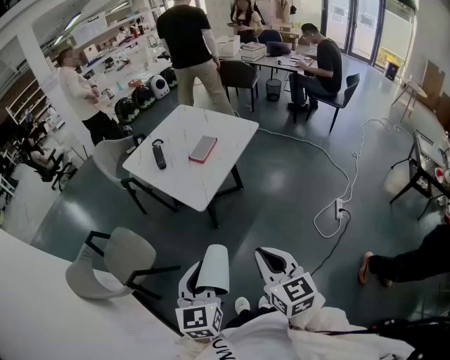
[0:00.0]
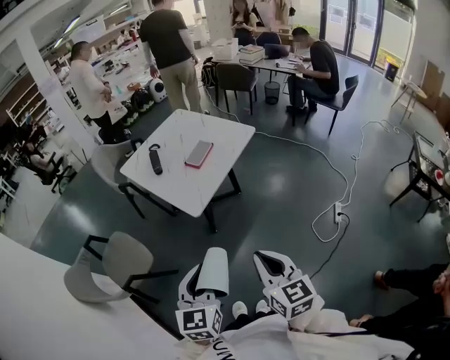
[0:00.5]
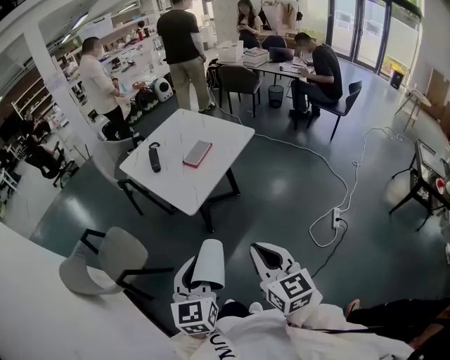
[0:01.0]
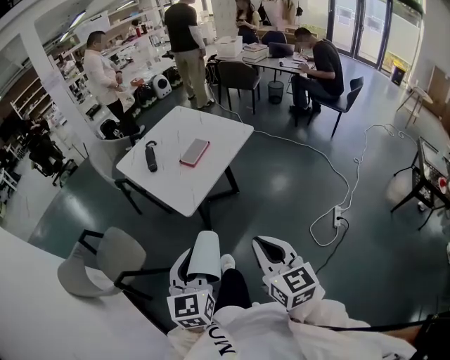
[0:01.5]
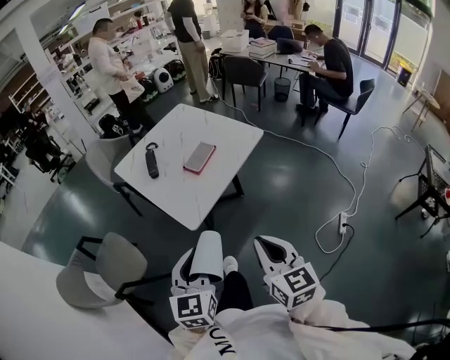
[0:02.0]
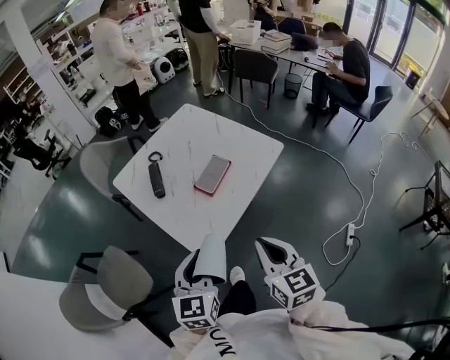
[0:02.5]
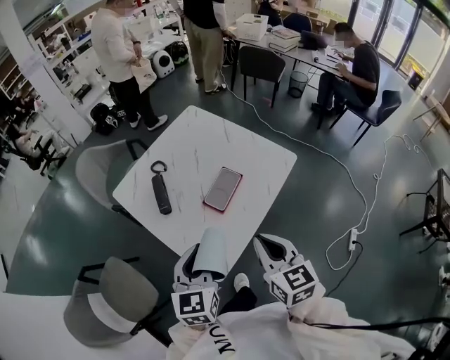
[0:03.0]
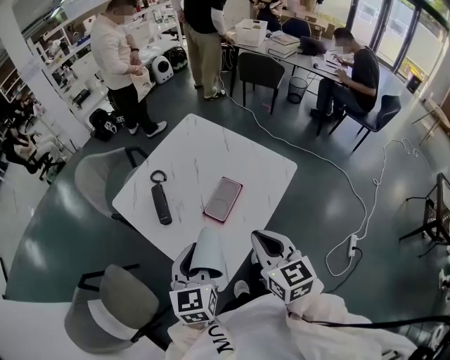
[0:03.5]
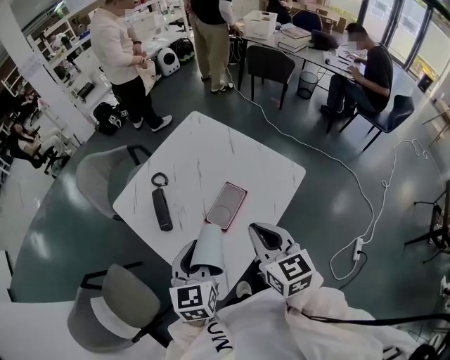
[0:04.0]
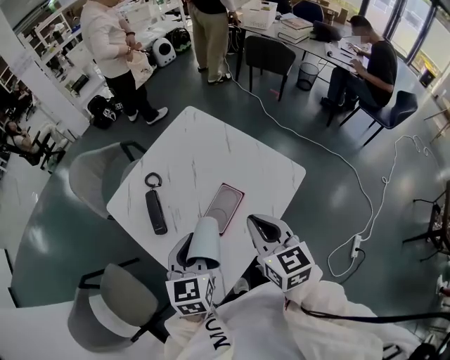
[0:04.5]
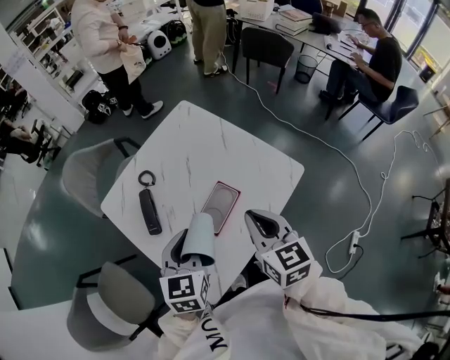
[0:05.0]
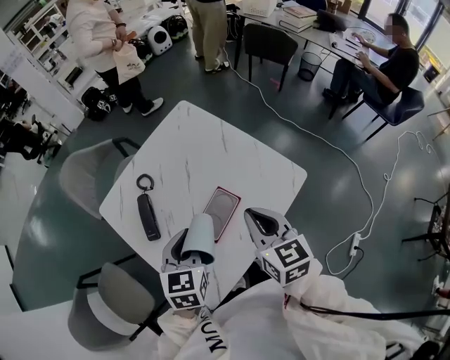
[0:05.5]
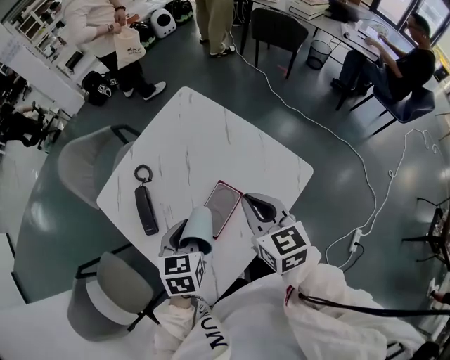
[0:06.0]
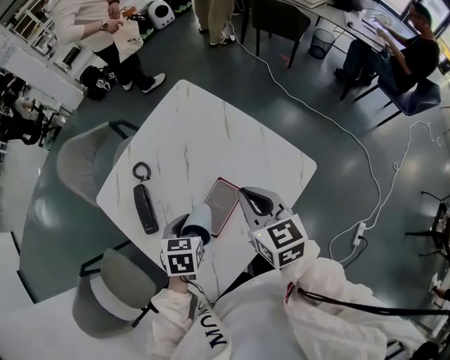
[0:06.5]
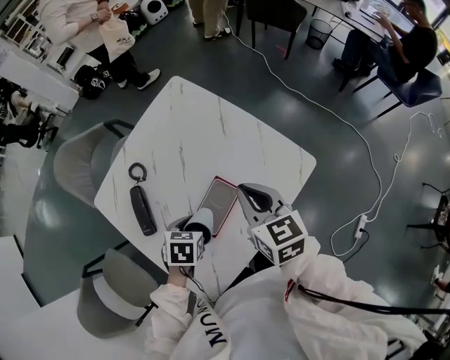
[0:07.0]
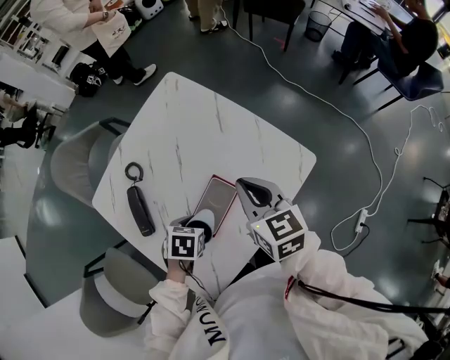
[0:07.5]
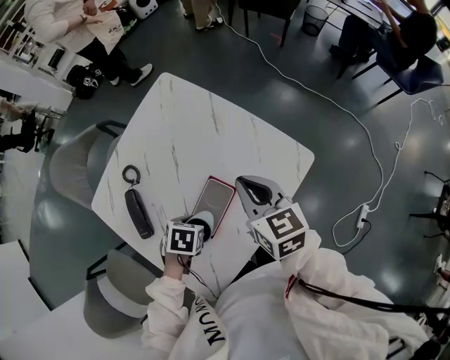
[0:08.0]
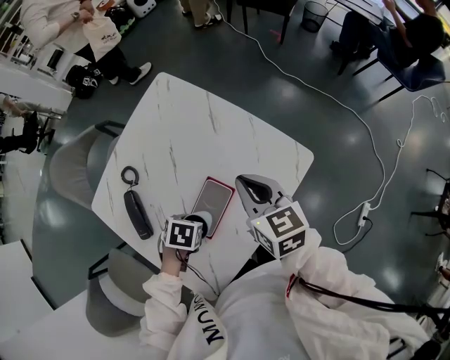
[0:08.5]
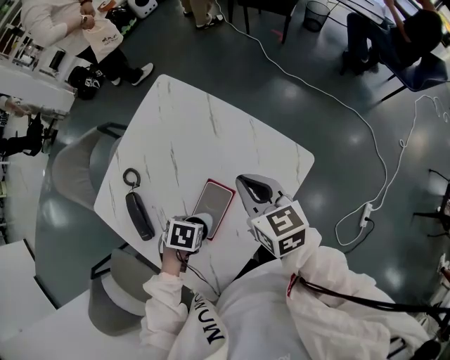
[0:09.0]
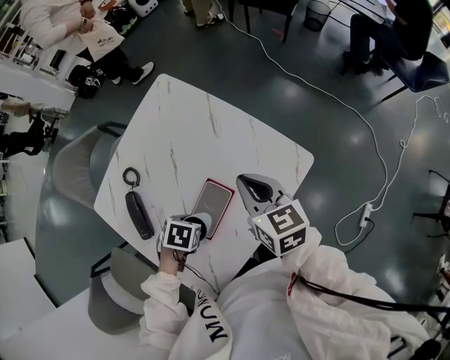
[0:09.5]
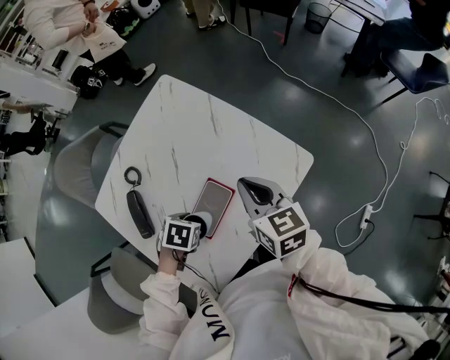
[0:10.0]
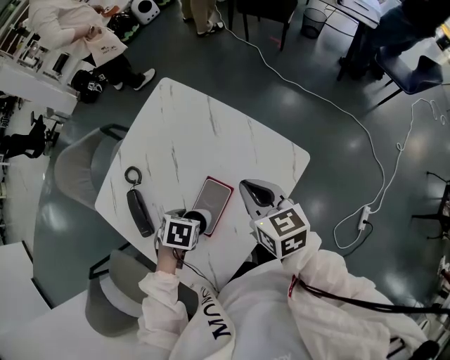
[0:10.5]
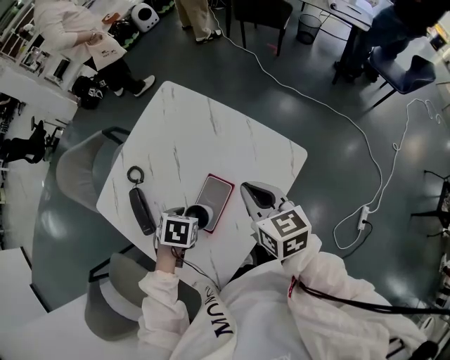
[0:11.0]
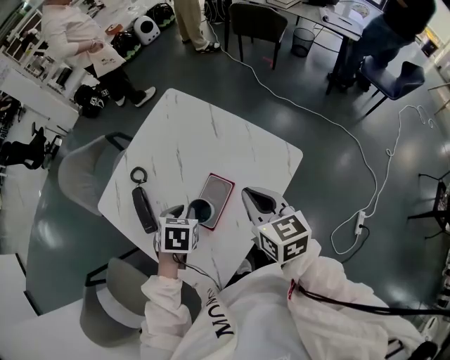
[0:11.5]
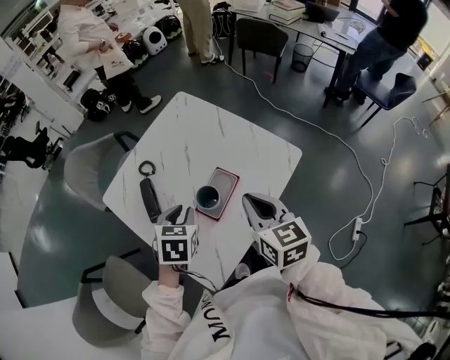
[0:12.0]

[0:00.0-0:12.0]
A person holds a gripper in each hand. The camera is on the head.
0:00.0 to 0:02.0: The two grippers go about 15 cm forward and to the right.
0:02.0 to 0:04.0: Both grippers travel together forward, about 40 cm.
0:04.0 to 0:06.0: The right gripper goes roughly 15 cm forward. The left gripper shifts about 15 cm forward and downward, and turns by about 20 degrees.
0:06.0 to 0:08.0: The right gripper moves some 10 cm. Meanwhile the left gripper travels downward by roughly 15 cm, and angles its fingers downward, by approximately 40 degrees.
0:08.0 to 0:10.0: The grippers make only small movements.
0:10.0 to 0:12.0: The left gripper heads upward, covering roughly 15 cm, and rotates roughly 30 degrees; the right gripper changes place by roughly 15 cm.

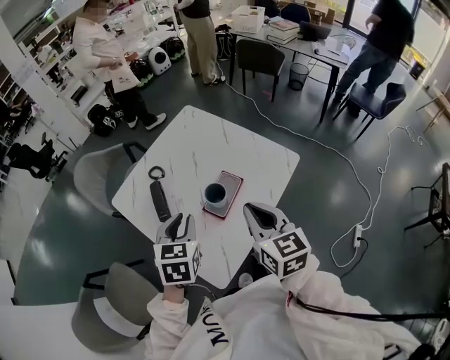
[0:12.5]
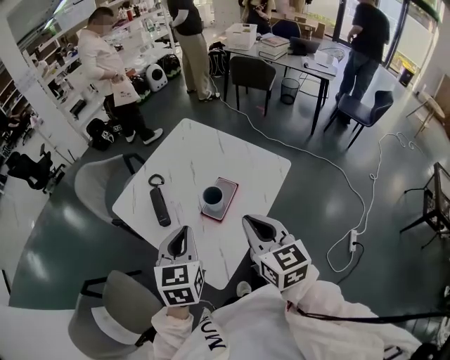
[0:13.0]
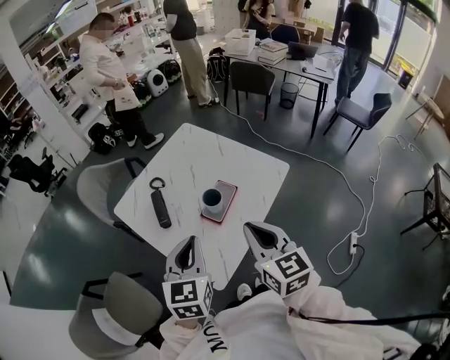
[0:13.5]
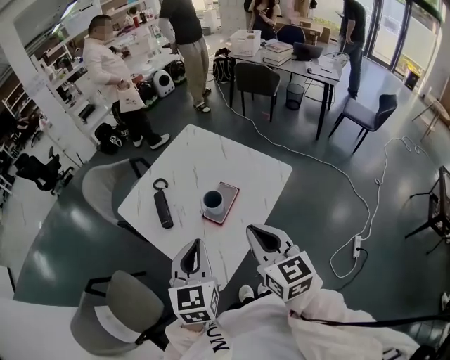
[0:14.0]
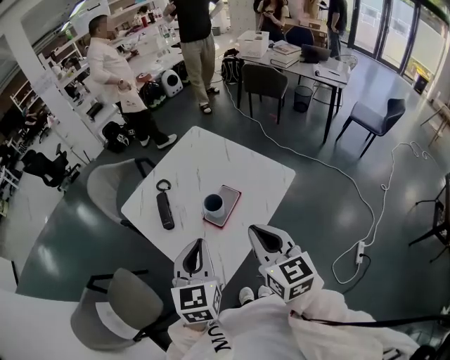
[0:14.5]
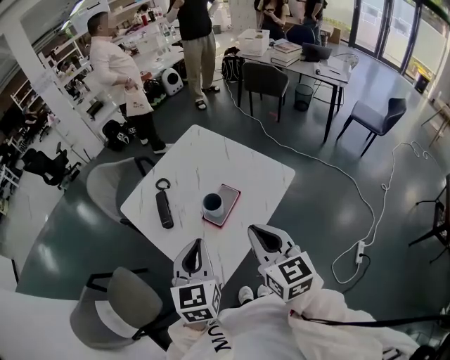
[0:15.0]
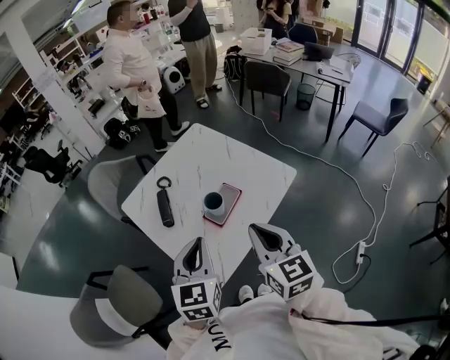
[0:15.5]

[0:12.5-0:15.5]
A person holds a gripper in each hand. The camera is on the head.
0:12.5 to 0:14.0: Both grippers move backward and upward, approximately 10 cm.
0:14.0 to 0:15.5: The grippers make only small movements.

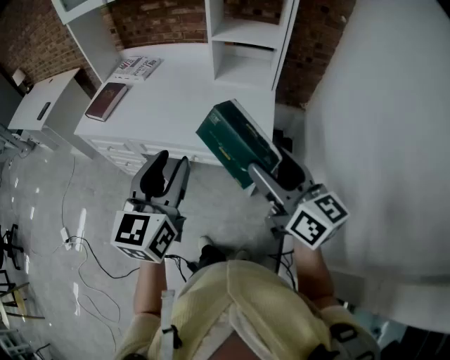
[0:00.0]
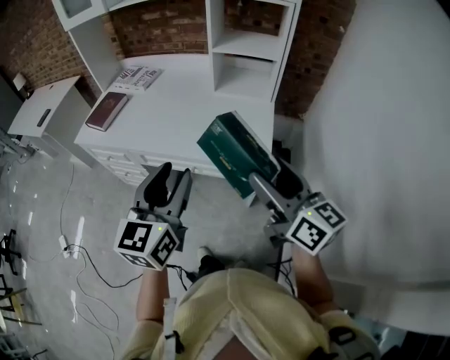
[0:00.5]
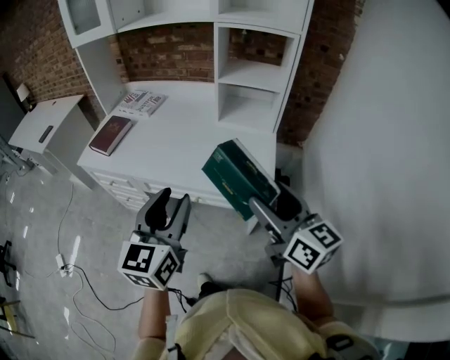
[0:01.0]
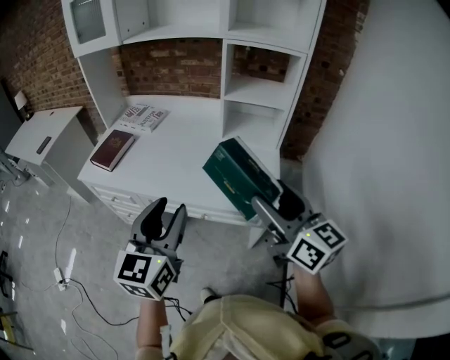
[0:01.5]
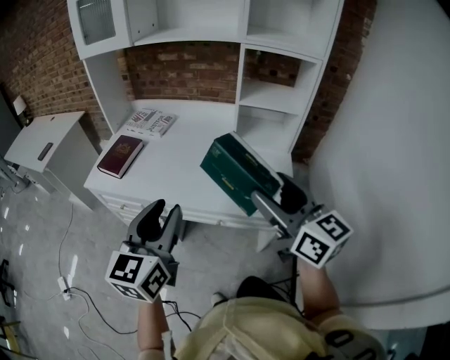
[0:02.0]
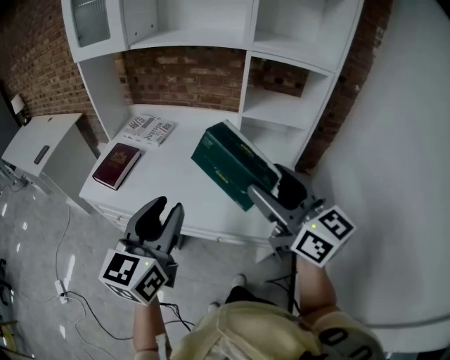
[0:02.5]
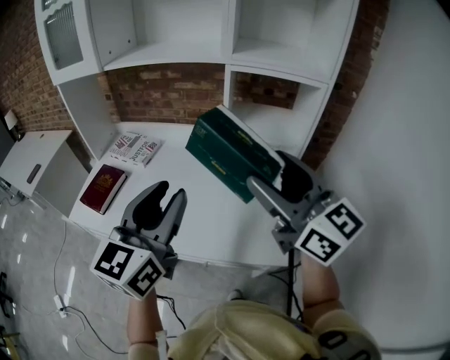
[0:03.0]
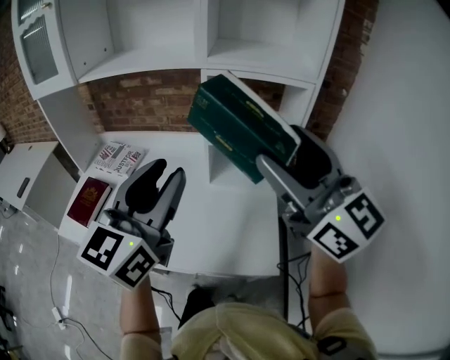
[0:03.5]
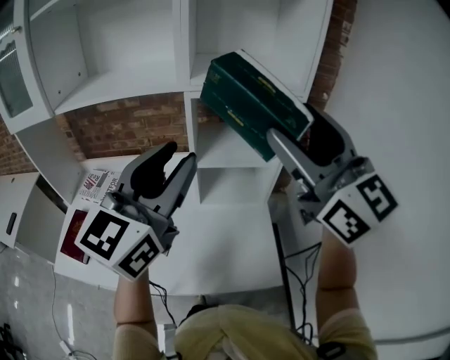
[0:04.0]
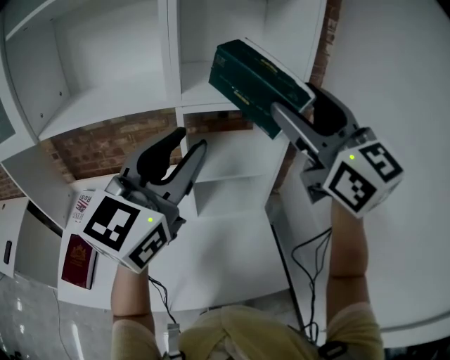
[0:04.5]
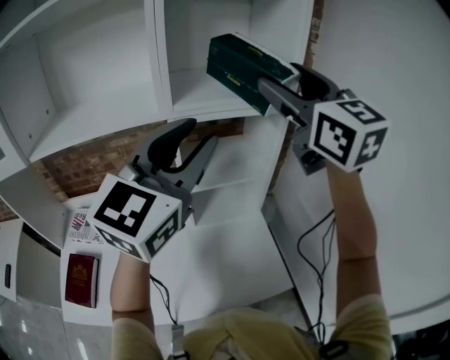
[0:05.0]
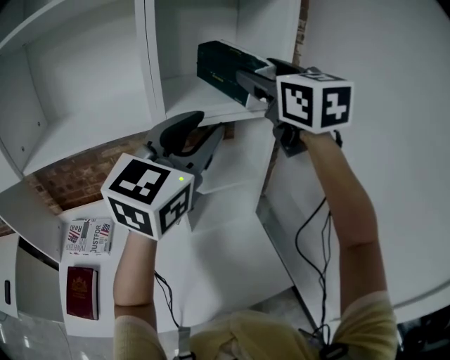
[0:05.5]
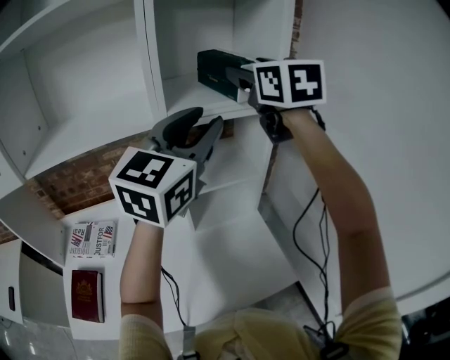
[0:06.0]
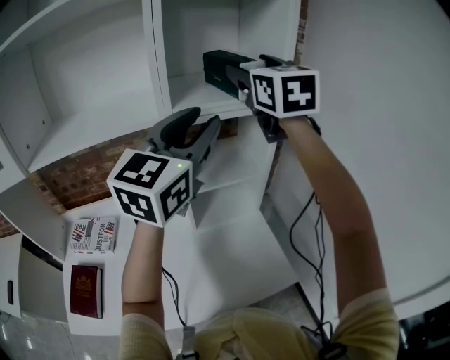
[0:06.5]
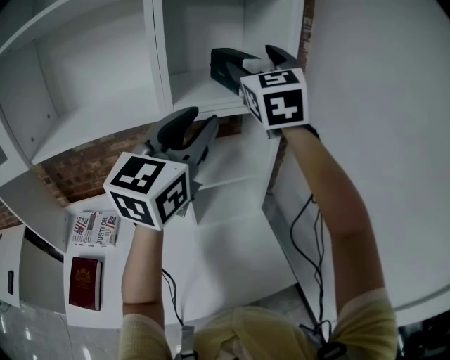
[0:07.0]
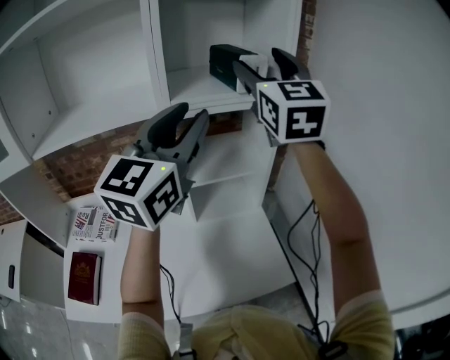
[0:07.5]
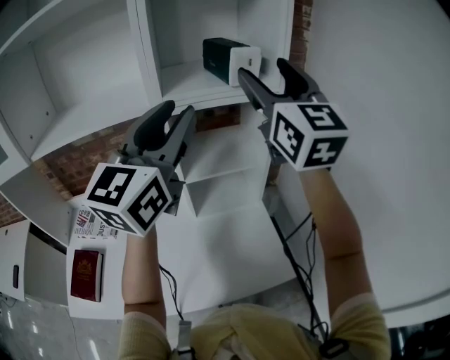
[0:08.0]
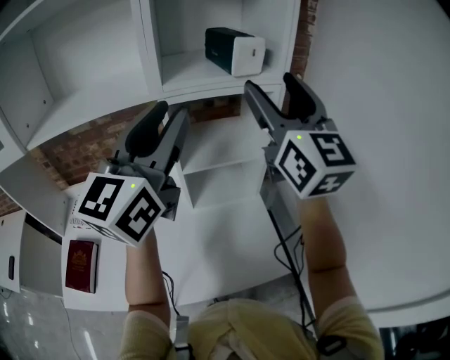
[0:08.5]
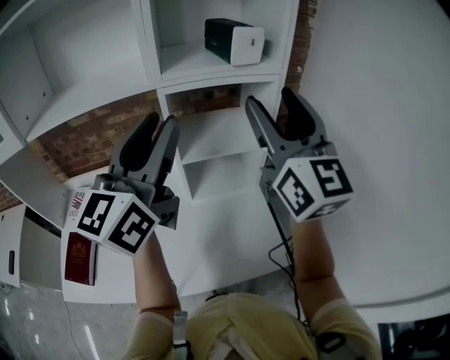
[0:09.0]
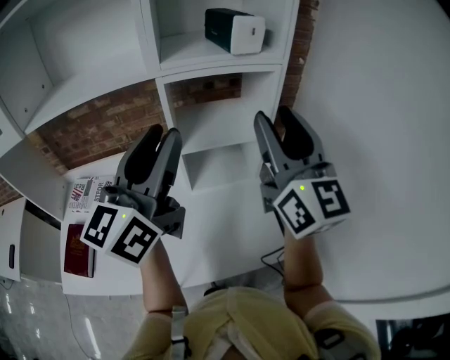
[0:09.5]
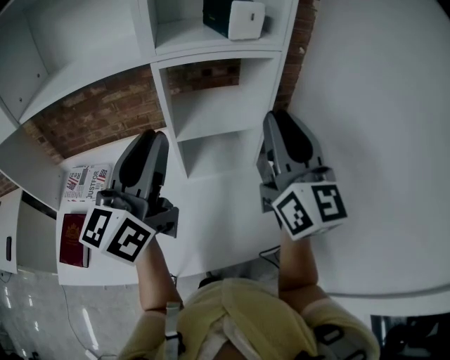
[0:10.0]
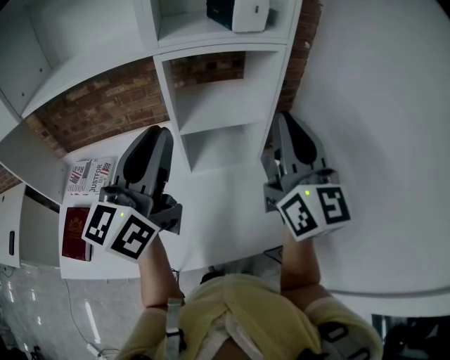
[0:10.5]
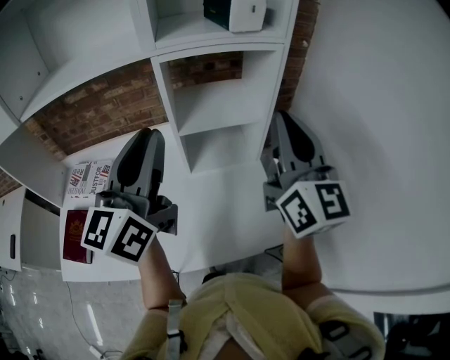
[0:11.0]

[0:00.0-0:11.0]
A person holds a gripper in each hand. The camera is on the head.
0:00.0 to 0:02.0: The right gripper heads to the left, forward and upward, covering roughly 15 cm. The left gripper moves to the left and forward, some 15 cm.
0:02.0 to 0:03.5: The left gripper shifts some 30 cm forward, to the right and upward; the right gripper moves forward, upward and to the right, approximately 25 cm, and swivels some 20 degrees.
0:03.5 to 0:05.5: The left gripper shifts by approximately 20 cm, and changes its angle by about 30 degrees; the right gripper shifts by about 25 cm, and changes its angle by some 40 degrees.
0:07.5 to 0:09.0: The right gripper heads backward and downward, covering about 15 cm. Meanwhile the left gripper travels backward by some 5 cm.
0:09.0 to 0:11.0: Both grippers move downward, approximately 10 cm. The right gripper closes.

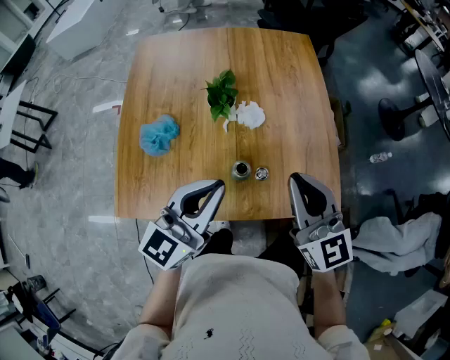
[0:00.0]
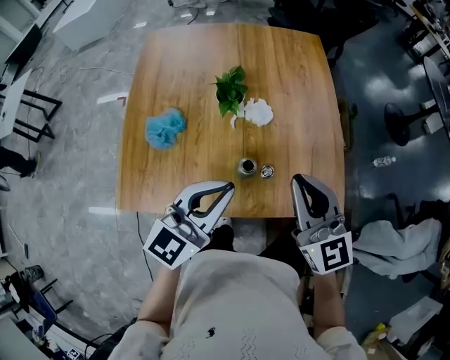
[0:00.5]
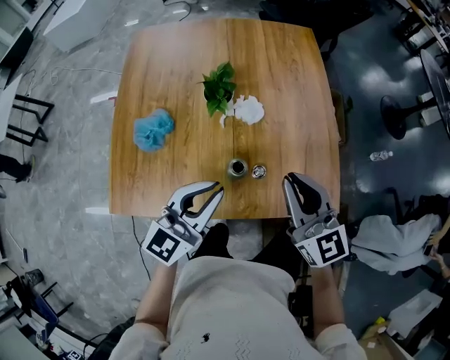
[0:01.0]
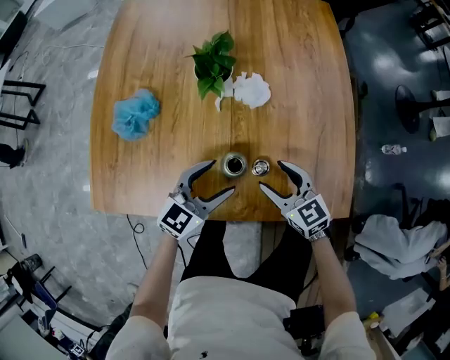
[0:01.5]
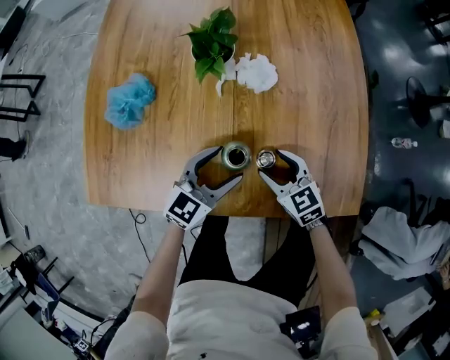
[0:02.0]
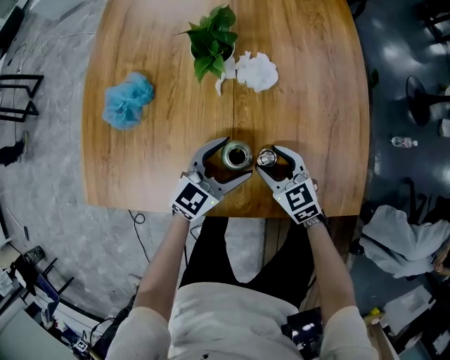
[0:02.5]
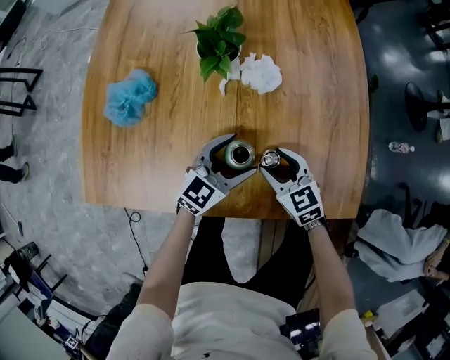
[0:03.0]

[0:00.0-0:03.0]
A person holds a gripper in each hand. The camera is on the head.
0:00.0 to 0:01.5: Both grippers travel together downward, about 30 cm. The left gripper changes its angle by approximately 20 degrees, and opens up; the right gripper turns by approximately 30 degrees, and opens up.
0:01.5 to 0:03.0: The grippers both shift downward by approximately 5 cm.
